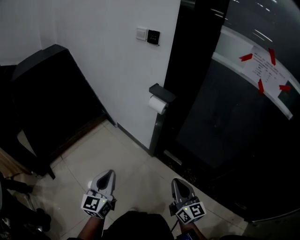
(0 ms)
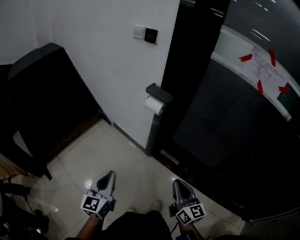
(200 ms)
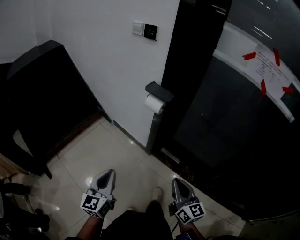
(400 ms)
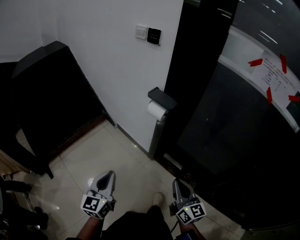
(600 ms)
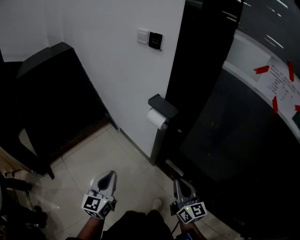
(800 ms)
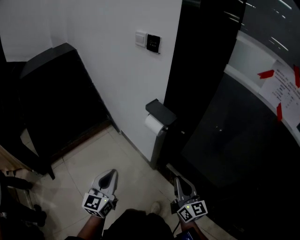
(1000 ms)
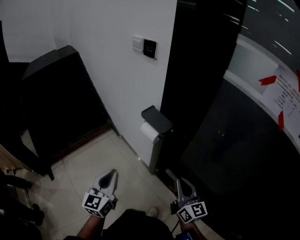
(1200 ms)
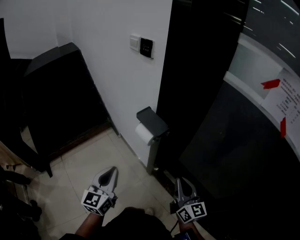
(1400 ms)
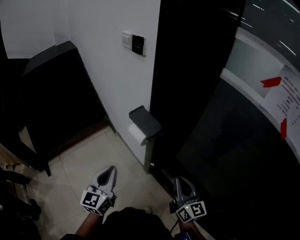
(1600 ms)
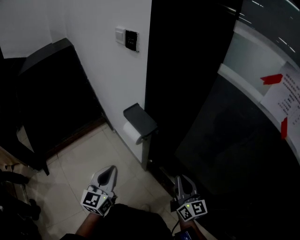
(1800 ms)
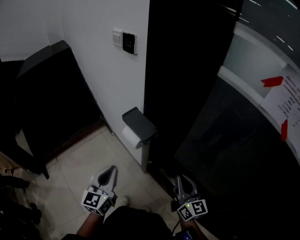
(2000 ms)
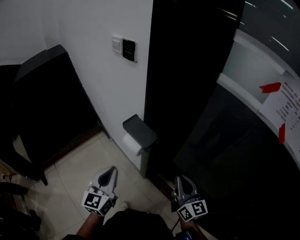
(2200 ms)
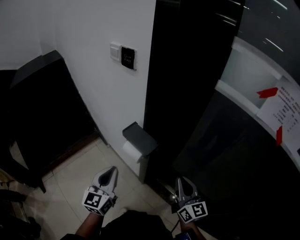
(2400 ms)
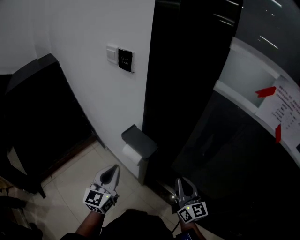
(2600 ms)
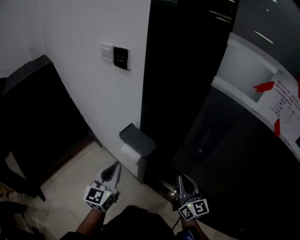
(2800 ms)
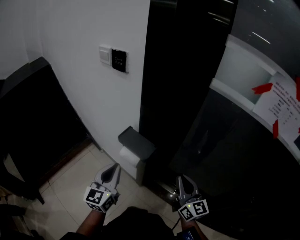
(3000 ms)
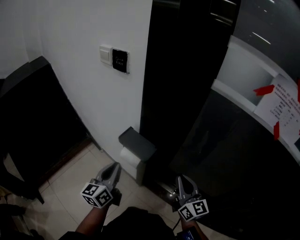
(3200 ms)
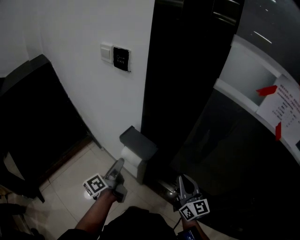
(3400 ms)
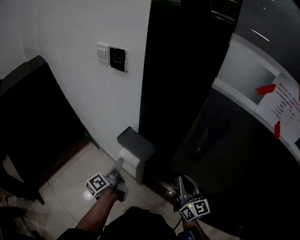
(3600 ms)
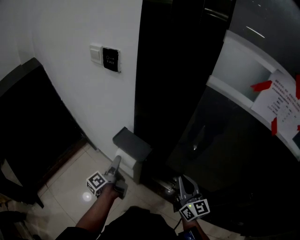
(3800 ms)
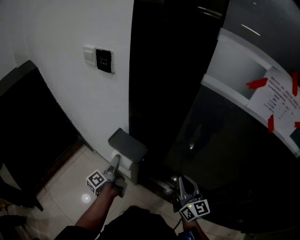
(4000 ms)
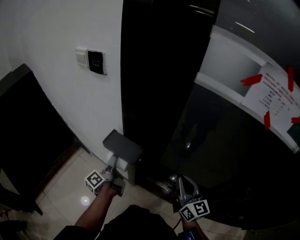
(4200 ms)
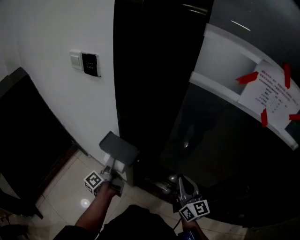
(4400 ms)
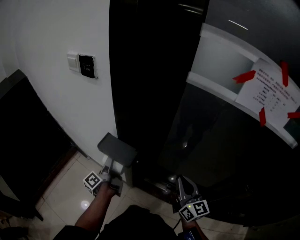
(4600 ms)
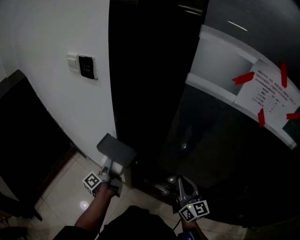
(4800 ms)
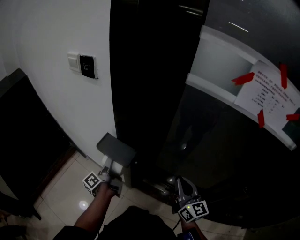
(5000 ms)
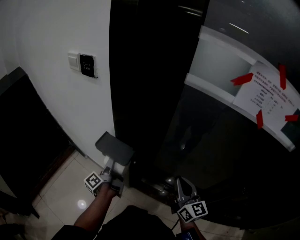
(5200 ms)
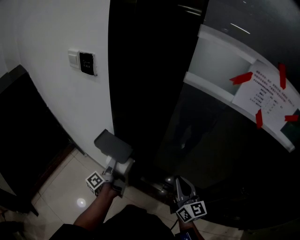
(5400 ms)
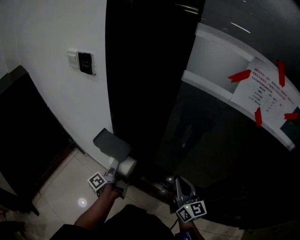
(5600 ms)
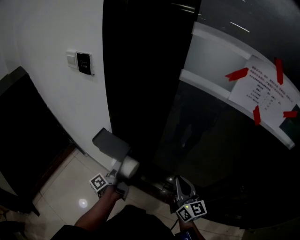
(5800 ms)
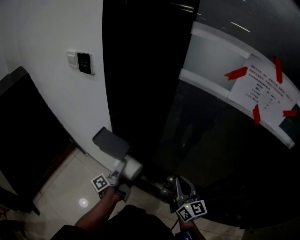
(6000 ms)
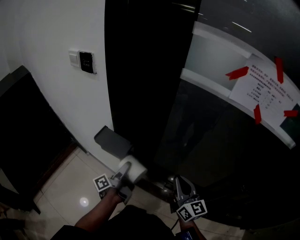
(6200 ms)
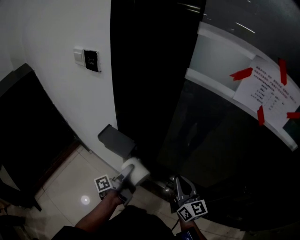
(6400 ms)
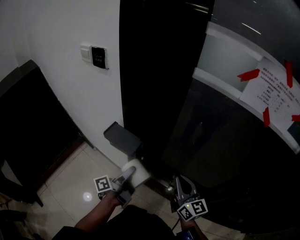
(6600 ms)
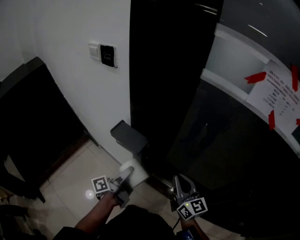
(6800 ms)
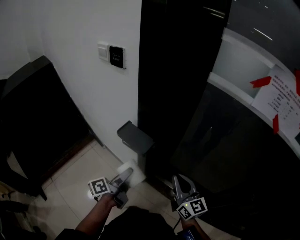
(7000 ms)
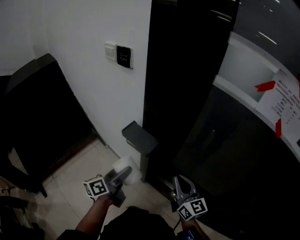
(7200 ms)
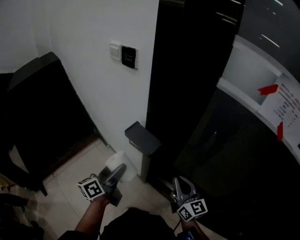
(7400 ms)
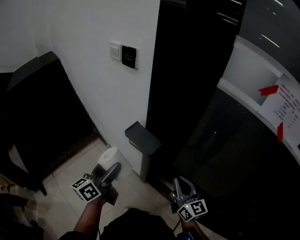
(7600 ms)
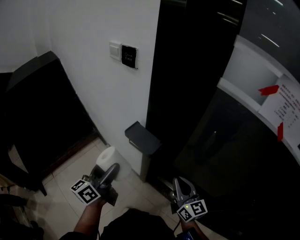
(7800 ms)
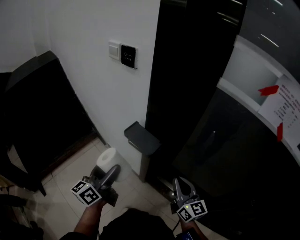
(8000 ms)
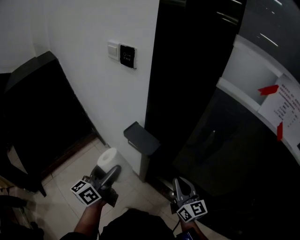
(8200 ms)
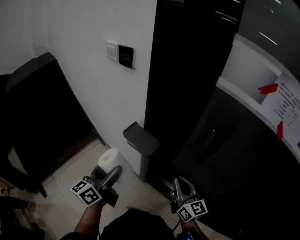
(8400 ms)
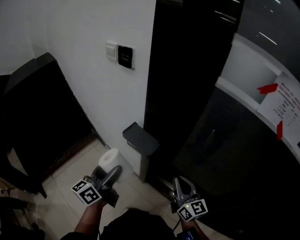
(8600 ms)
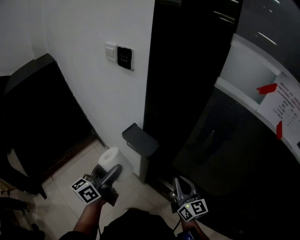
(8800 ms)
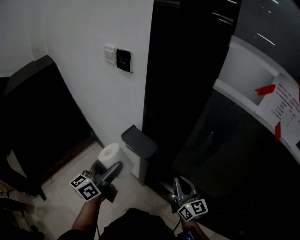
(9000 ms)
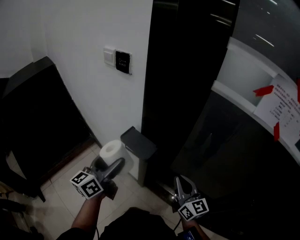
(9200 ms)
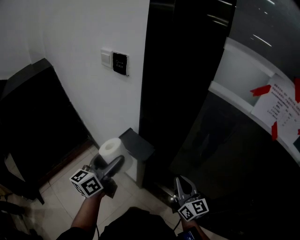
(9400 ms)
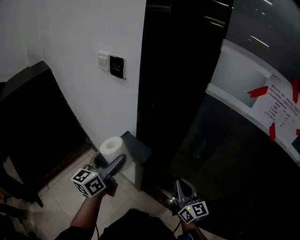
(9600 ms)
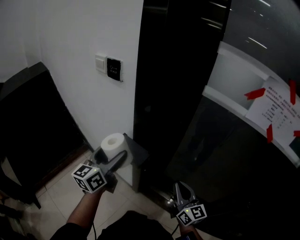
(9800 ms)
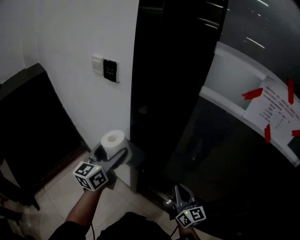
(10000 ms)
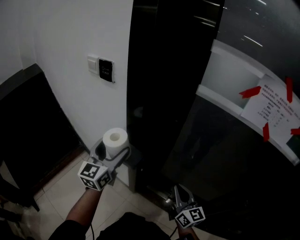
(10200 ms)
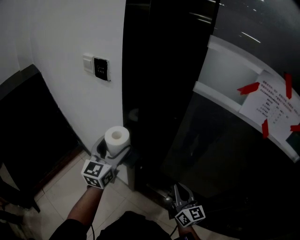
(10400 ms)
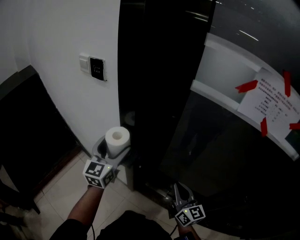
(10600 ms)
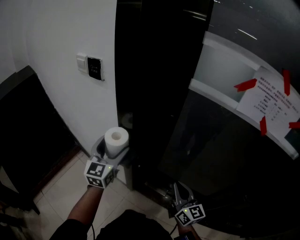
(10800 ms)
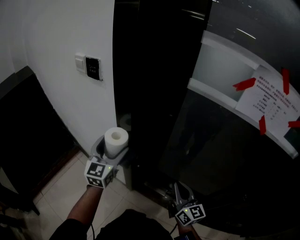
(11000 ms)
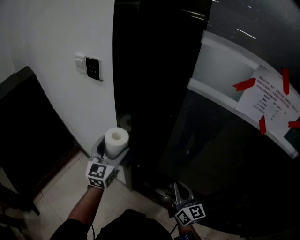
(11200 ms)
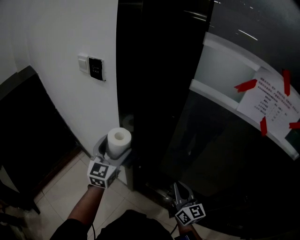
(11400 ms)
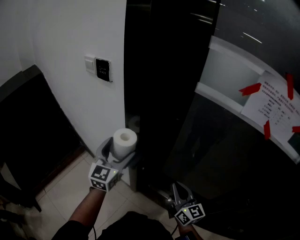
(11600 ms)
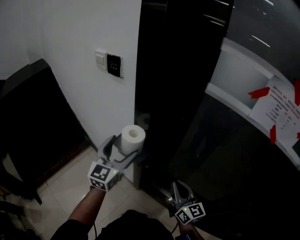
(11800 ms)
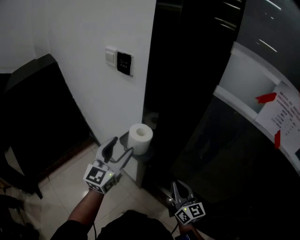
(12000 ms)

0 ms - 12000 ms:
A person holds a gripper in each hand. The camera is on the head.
0 ms - 1600 ms: The grippers both shift forward and to the right by roughly 30 cm.
1600 ms - 3000 ms: The right gripper goes about 5 cm forward. The left gripper goes about 15 cm forward.
3000 ms - 4400 ms: The left gripper is displaced downward and forward by some 15 cm, twists roughly 80 degrees counterclockwise, seen from behind, and opens its fingers; the right gripper heads to the right, covering some 5 cm.
4400 ms - 6000 ms: The left gripper goes some 10 cm to the right.
6000 ms - 7600 ms: The left gripper travels to the left, upward and backward by about 20 cm, and twists approximately 60 degrees clockwise, seen from behind. The right gripper heads to the left, covering some 10 cm.
7600 ms - 9000 ms: The grippers make only small movements.
9000 ms - 10400 ms: The right gripper goes about 5 cm to the right. Meanwhile the left gripper travels forward and to the right by some 15 cm, and swivels approximately 30 degrees.
10400 ms - 12000 ms: The left gripper ends up some 5 cm from where it was. Meanwhile the right gripper moves to the left, about 5 cm.

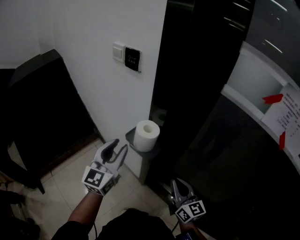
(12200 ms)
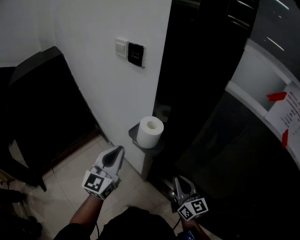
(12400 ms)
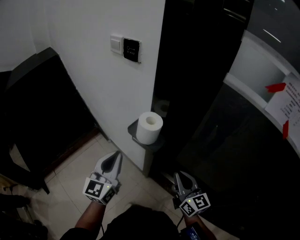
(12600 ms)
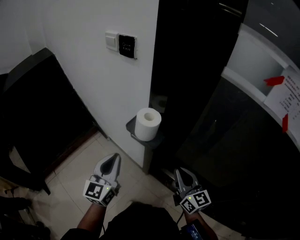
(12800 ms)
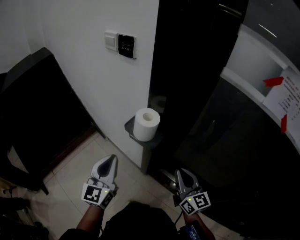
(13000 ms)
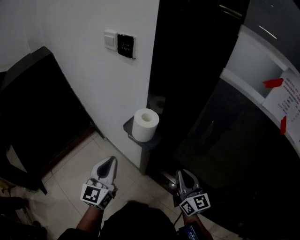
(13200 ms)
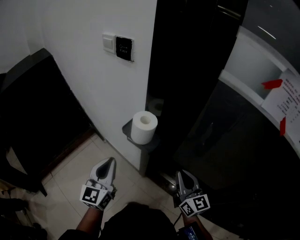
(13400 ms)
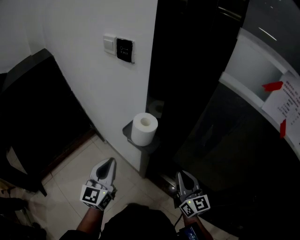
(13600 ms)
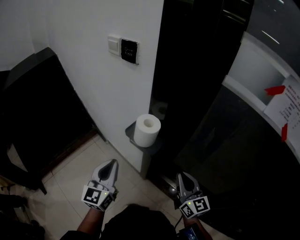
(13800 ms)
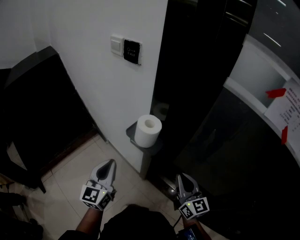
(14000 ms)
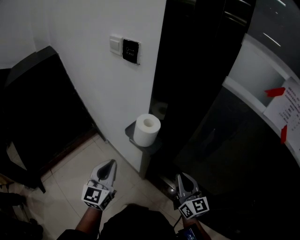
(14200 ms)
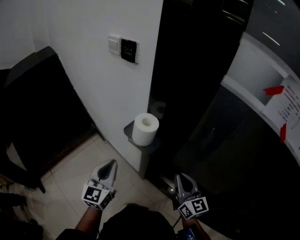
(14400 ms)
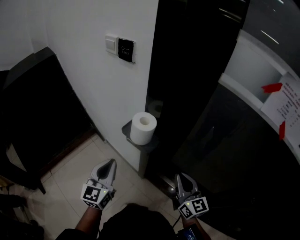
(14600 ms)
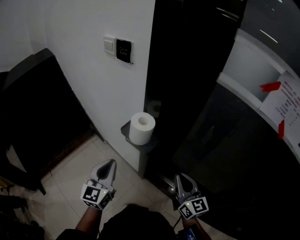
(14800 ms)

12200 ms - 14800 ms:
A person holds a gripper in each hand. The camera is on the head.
12200 ms - 13400 ms: The left gripper travels downward and backward by about 10 cm, and closes up.
13400 ms - 14800 ms: There are only small adjustments of the grippers.

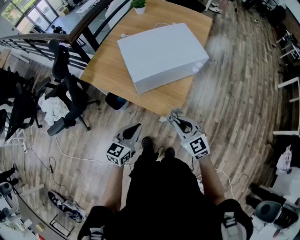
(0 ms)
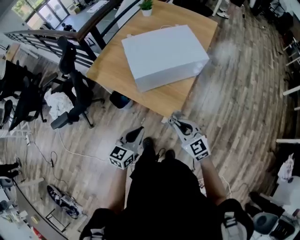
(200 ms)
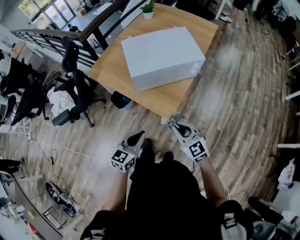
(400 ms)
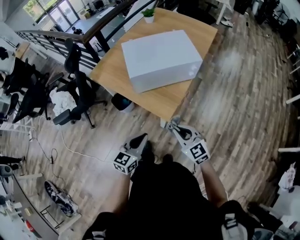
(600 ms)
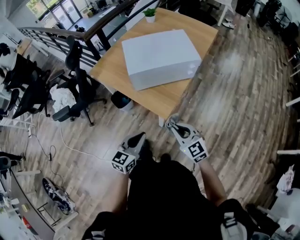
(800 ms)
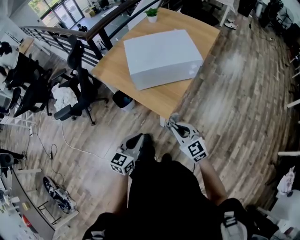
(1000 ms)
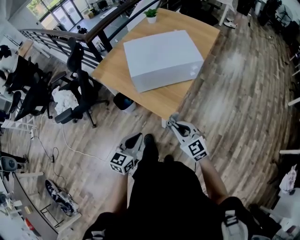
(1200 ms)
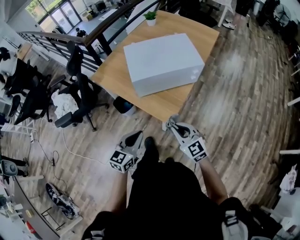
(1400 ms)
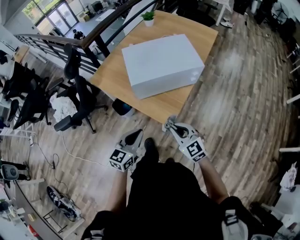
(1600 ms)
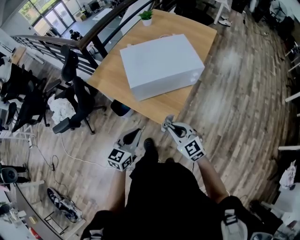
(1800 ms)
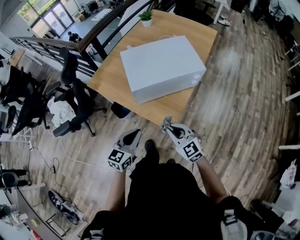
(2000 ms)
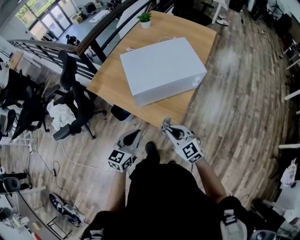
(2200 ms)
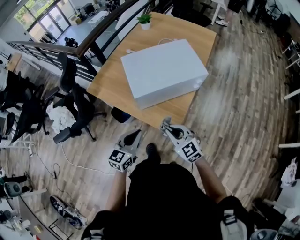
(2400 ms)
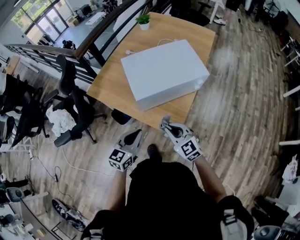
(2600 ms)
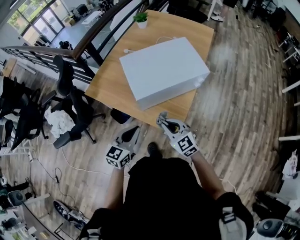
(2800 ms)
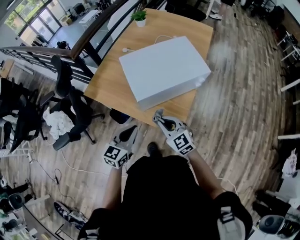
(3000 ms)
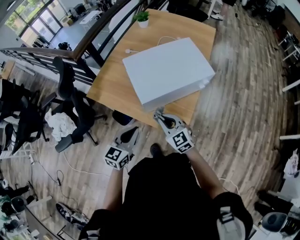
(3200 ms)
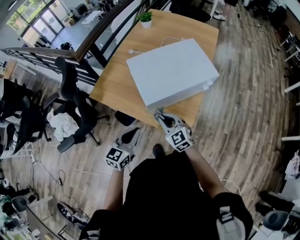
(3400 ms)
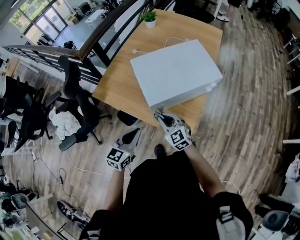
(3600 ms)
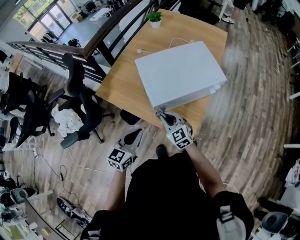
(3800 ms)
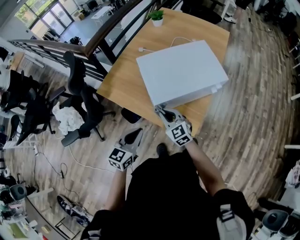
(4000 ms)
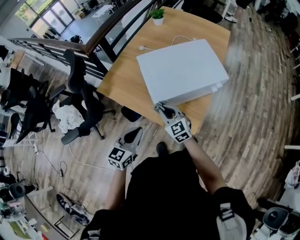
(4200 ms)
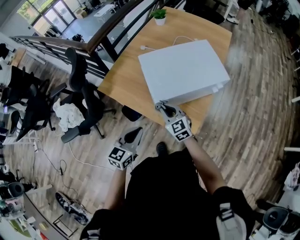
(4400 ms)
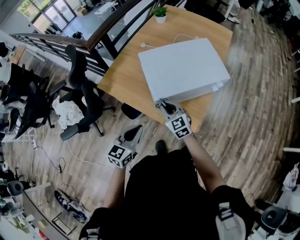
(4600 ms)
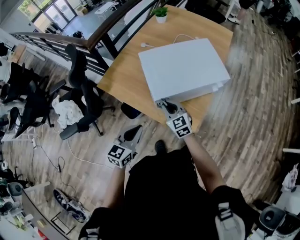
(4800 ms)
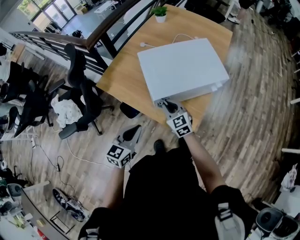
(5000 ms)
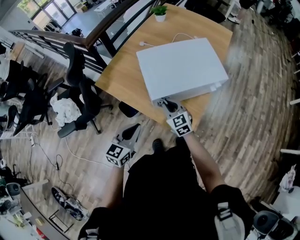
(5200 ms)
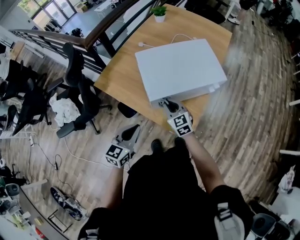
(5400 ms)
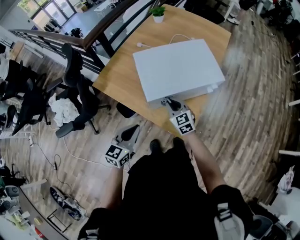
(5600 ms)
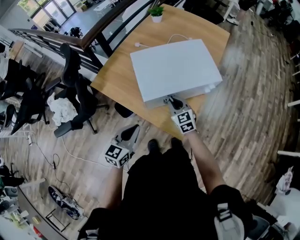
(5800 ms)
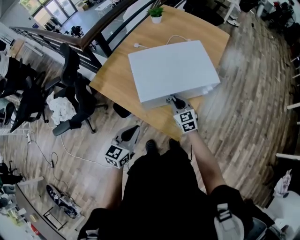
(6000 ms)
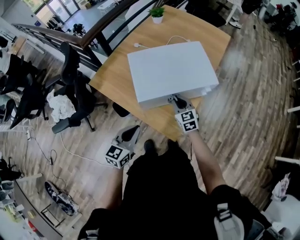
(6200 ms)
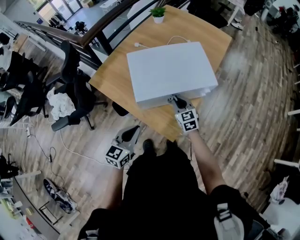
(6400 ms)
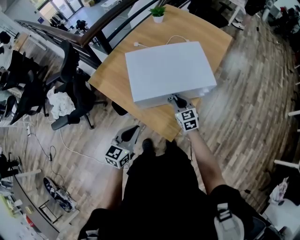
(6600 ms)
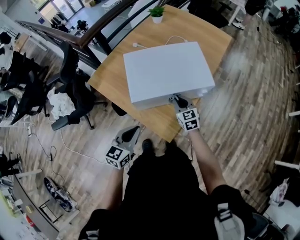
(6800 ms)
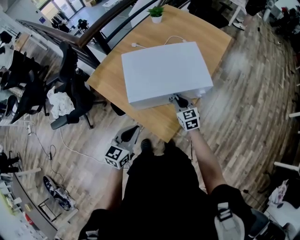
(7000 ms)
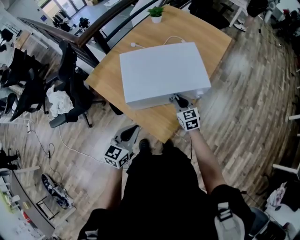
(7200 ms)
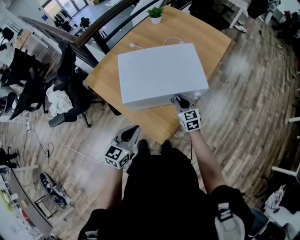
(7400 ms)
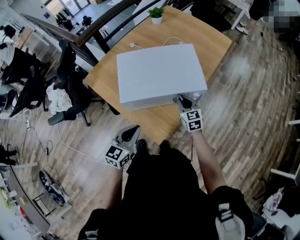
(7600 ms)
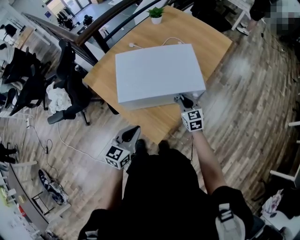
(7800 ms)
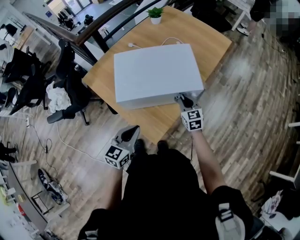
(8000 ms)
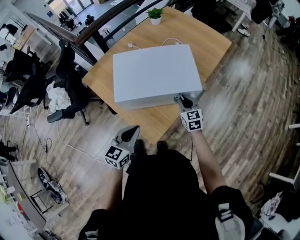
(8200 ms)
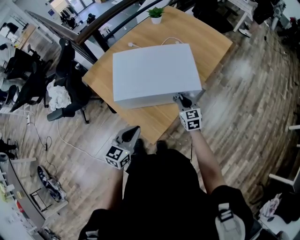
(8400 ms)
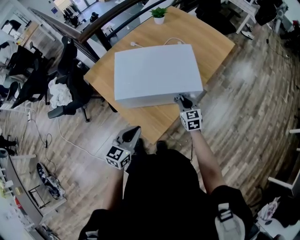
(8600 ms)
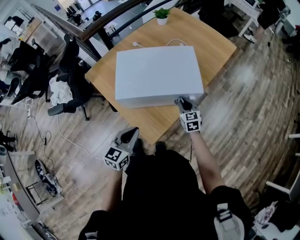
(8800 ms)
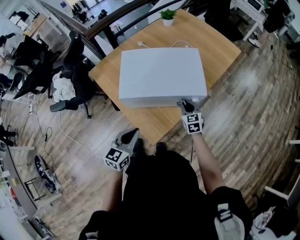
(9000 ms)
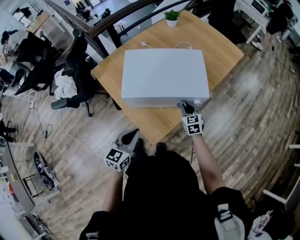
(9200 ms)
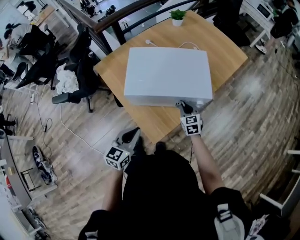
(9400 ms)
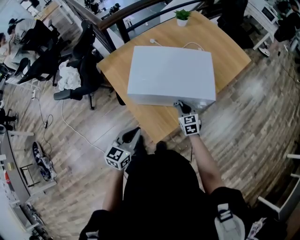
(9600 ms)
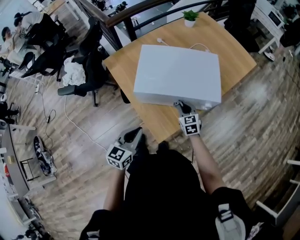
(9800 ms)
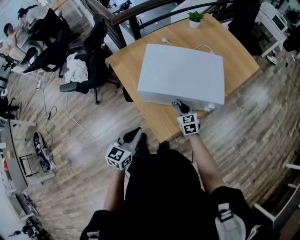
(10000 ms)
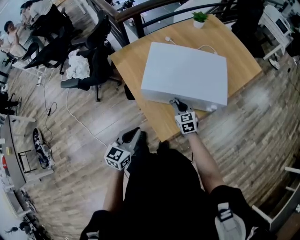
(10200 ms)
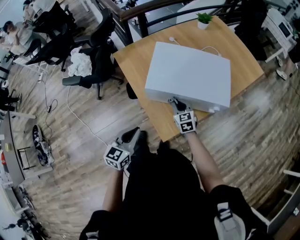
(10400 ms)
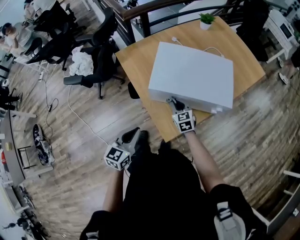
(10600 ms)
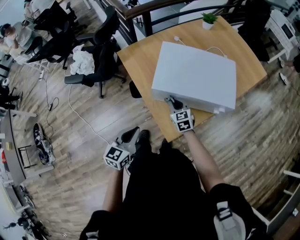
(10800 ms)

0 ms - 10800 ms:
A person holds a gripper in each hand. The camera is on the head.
0 ms - 1600 ms: The left gripper goes about 5 cm to the right, and goes backward and returns, some 15 cm each way.
1600 ms - 3000 ms: The two grippers go approximately 15 cm forward and to the left.
3000 ms - 4600 ms: The right gripper goes approximately 10 cm forward and to the left; the left gripper moves about 5 cm.
4600 ms - 6200 ms: The left gripper moves to the right, about 10 cm. Meanwhile the right gripper goes about 15 cm to the right.
6200 ms - 7800 ms: The grippers both shift to the right by about 15 cm.
7800 ms - 9200 ms: The right gripper moves downward, approximately 5 cm.
9200 ms - 10800 ms: The right gripper is displaced to the left by approximately 25 cm. The left gripper shifts some 10 cm to the left.
